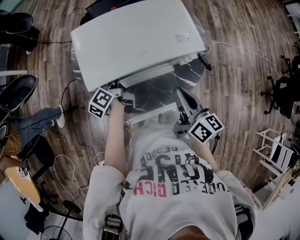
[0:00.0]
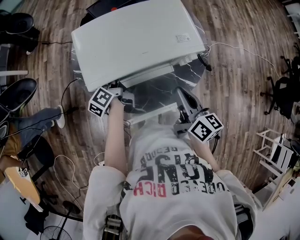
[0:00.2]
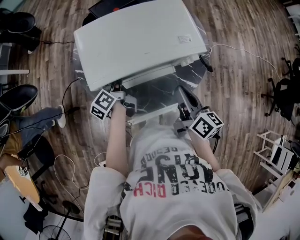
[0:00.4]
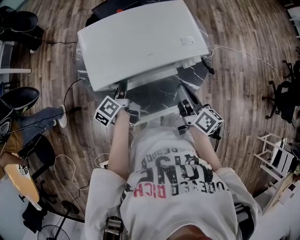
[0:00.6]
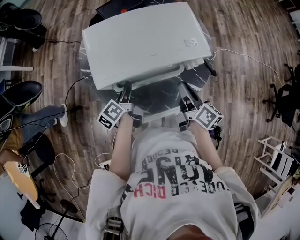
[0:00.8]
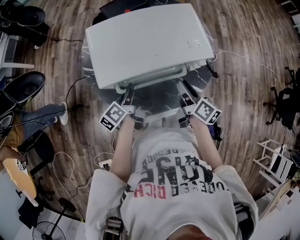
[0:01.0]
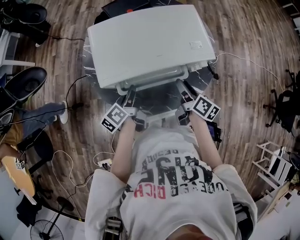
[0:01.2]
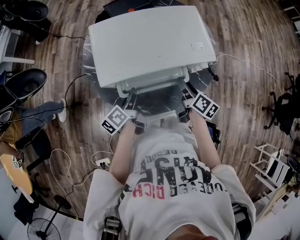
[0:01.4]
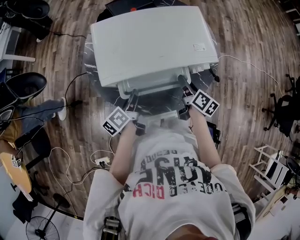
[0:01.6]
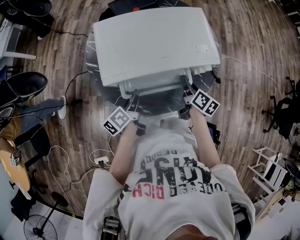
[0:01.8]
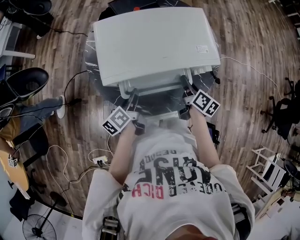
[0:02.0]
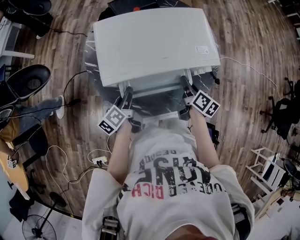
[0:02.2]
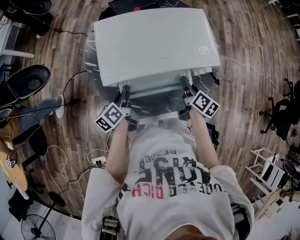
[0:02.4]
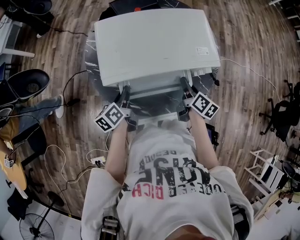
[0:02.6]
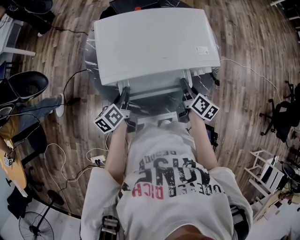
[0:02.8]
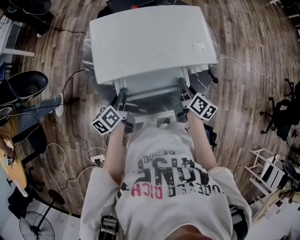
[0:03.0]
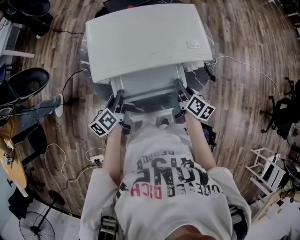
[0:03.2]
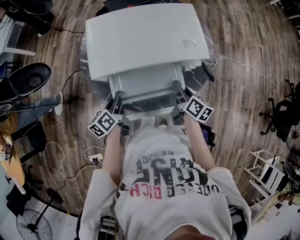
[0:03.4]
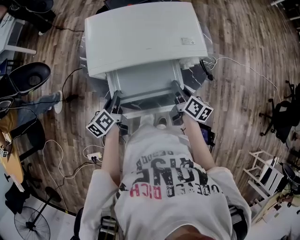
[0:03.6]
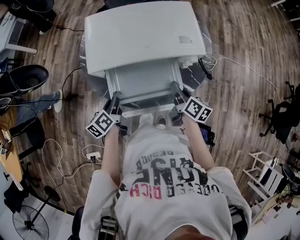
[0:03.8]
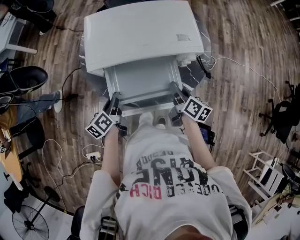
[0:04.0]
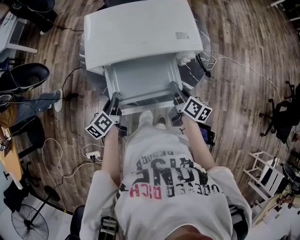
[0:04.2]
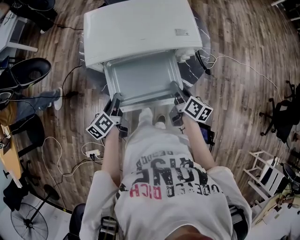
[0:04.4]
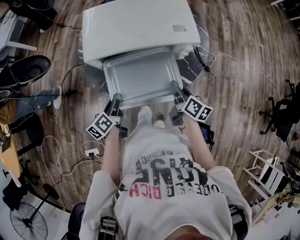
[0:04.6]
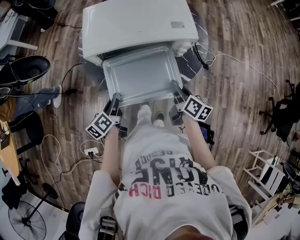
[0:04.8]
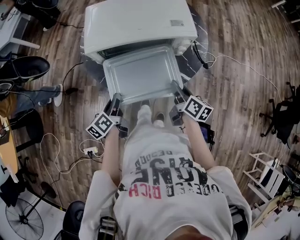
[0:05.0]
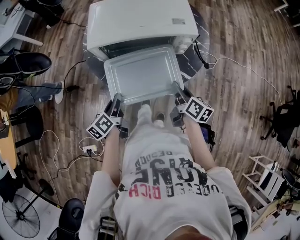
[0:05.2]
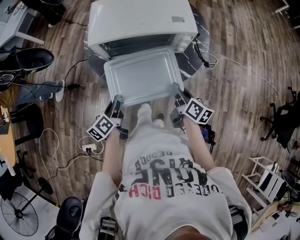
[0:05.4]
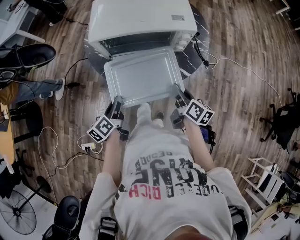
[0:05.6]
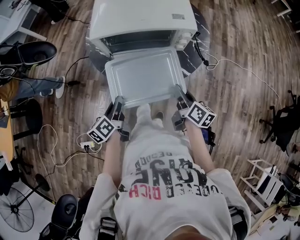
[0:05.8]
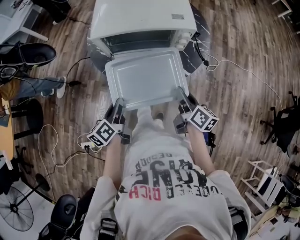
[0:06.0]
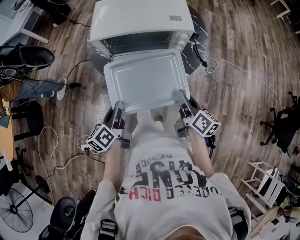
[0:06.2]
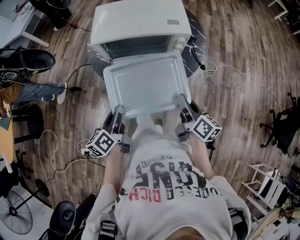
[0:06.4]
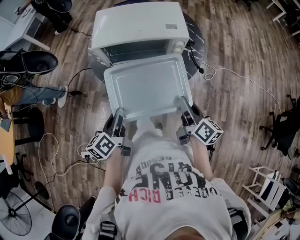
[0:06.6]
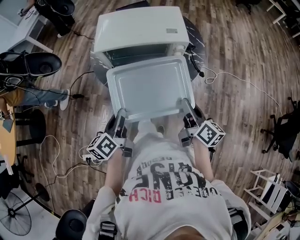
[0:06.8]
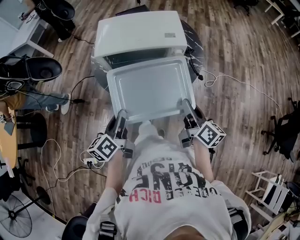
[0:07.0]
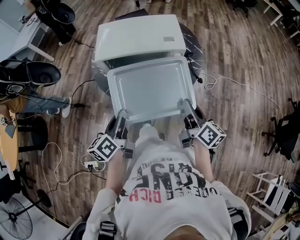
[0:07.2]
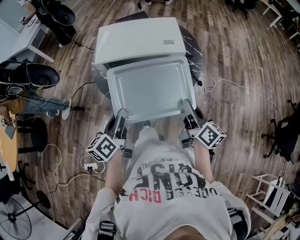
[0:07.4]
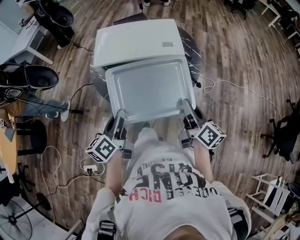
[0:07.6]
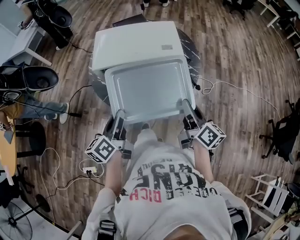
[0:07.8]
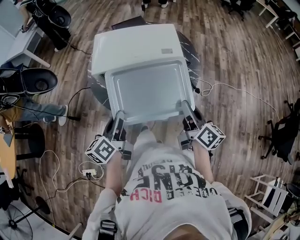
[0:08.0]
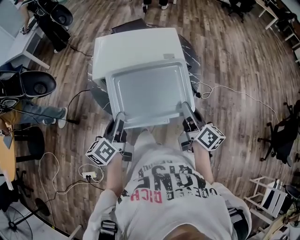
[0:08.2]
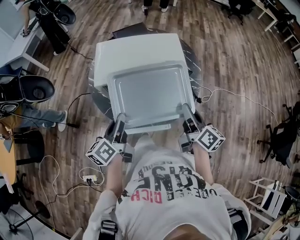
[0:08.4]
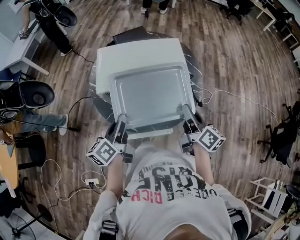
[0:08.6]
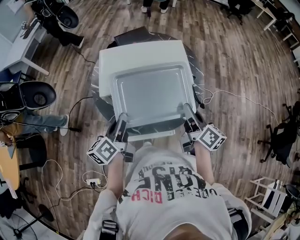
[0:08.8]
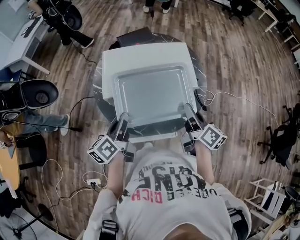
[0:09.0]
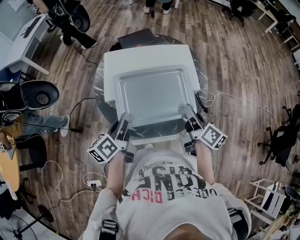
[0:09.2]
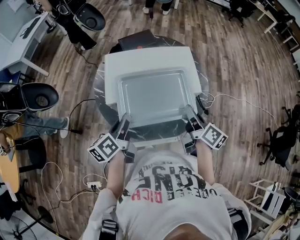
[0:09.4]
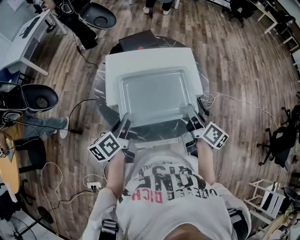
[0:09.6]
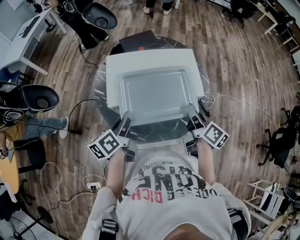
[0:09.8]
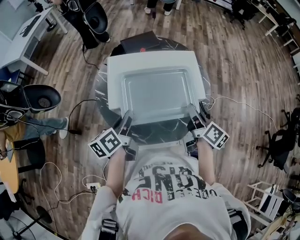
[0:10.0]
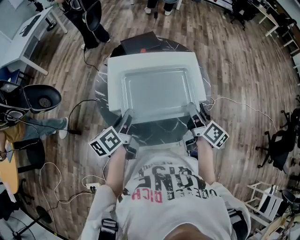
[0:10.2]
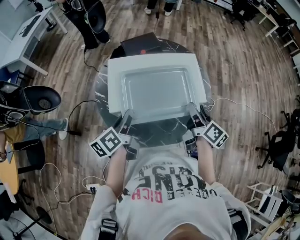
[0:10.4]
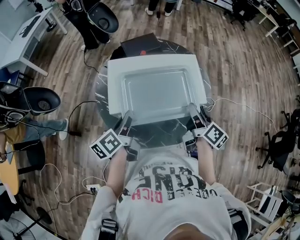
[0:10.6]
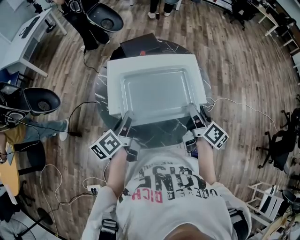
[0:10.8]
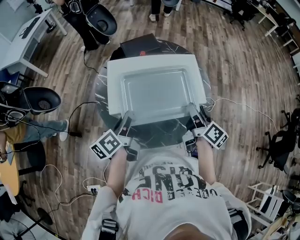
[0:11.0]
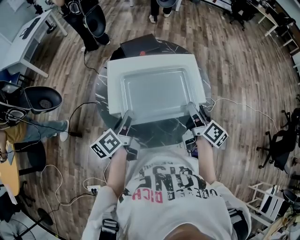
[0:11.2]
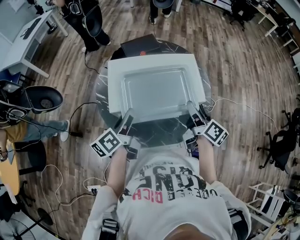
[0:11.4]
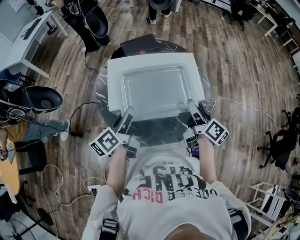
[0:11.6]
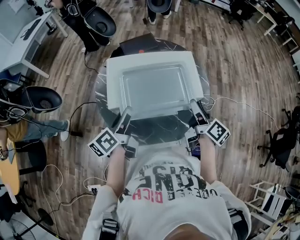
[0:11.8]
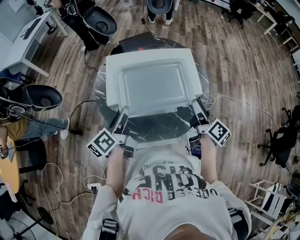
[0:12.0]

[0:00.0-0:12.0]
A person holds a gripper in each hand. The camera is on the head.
0:00.0 to 0:01.6: The left gripper shifts roughly 10 cm backward. Meanwhile the right gripper heads downward and forward, covering approximately 15 cm, changes its angle by some 20 degrees, and opens.
0:01.6 to 0:03.0: The right gripper closes up.
0:03.0 to 0:04.4: Both grippers travel together backward, approximately 10 cm.
0:04.4 to 0:06.0: Both grippers travel together backward, about 10 cm.
0:06.0 to 0:07.6: The grippers both shift upward by roughly 10 cm.
0:07.6 to 0:09.0: The two grippers go roughly 15 cm forward.
0:09.0 to 0:10.4: The two grippers go roughly 5 cm forward.
0:10.4 to 0:12.0: The right gripper opens up, while the left gripper opens its fingers.

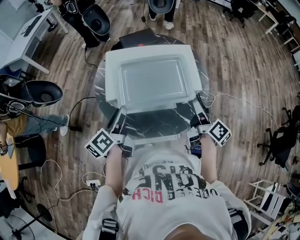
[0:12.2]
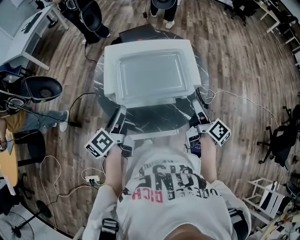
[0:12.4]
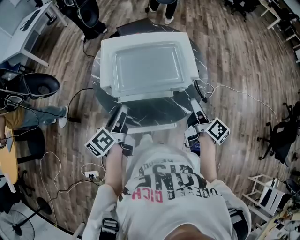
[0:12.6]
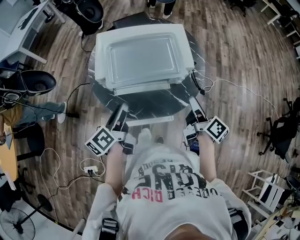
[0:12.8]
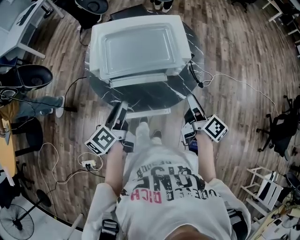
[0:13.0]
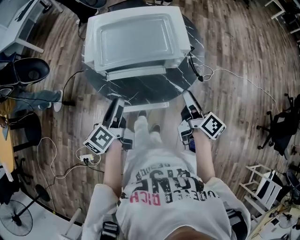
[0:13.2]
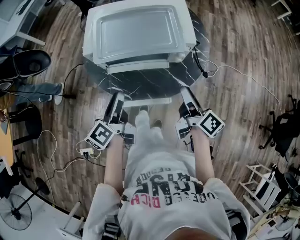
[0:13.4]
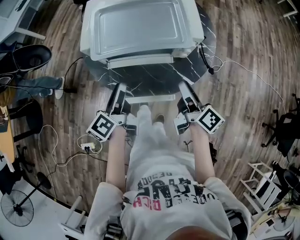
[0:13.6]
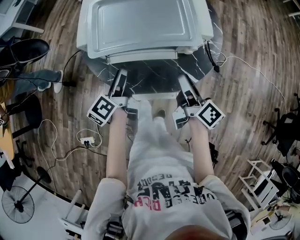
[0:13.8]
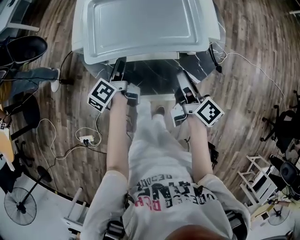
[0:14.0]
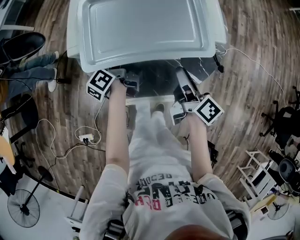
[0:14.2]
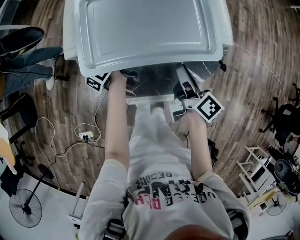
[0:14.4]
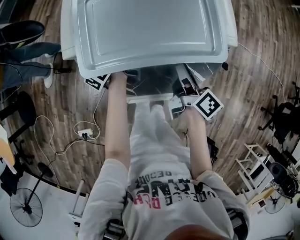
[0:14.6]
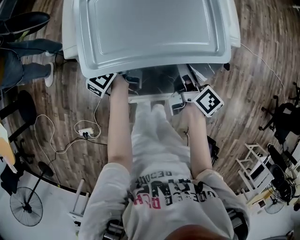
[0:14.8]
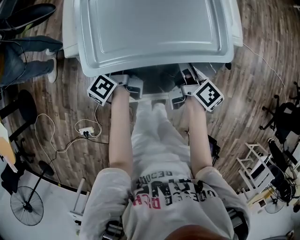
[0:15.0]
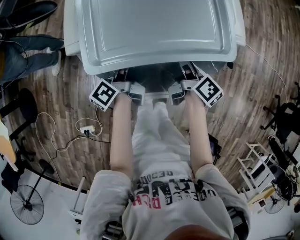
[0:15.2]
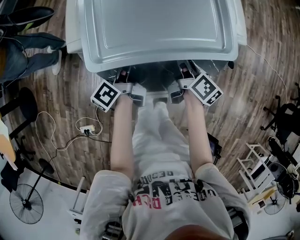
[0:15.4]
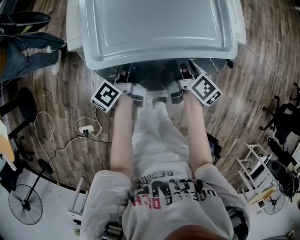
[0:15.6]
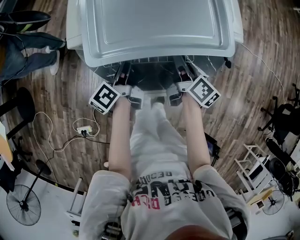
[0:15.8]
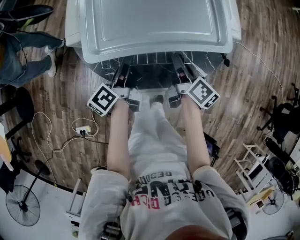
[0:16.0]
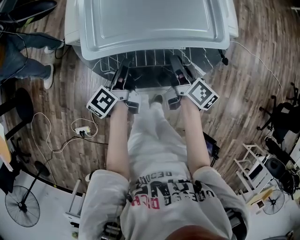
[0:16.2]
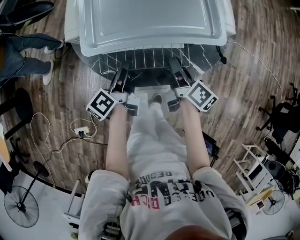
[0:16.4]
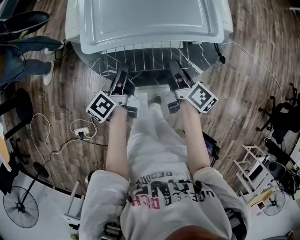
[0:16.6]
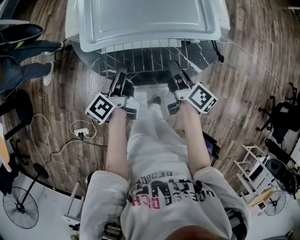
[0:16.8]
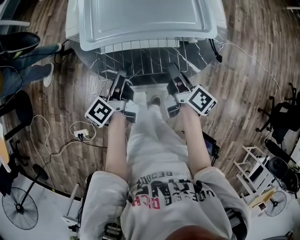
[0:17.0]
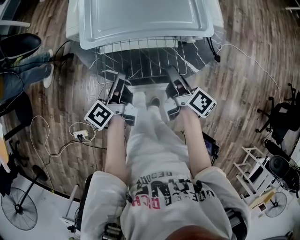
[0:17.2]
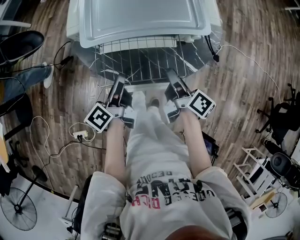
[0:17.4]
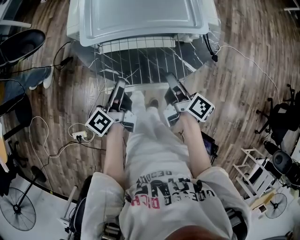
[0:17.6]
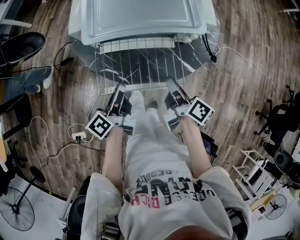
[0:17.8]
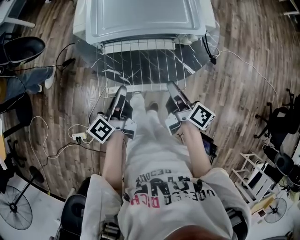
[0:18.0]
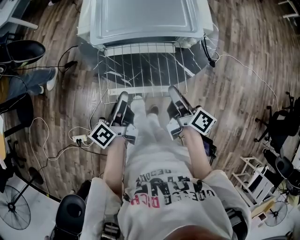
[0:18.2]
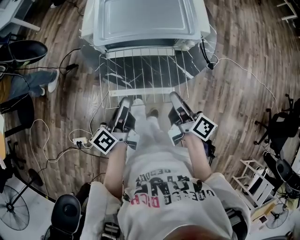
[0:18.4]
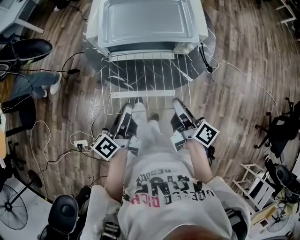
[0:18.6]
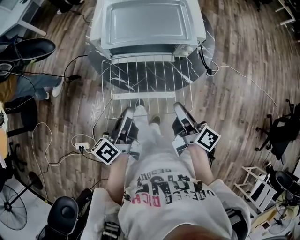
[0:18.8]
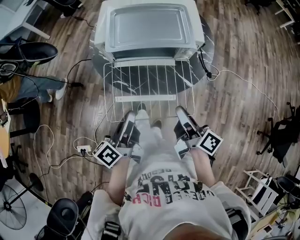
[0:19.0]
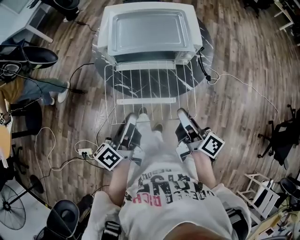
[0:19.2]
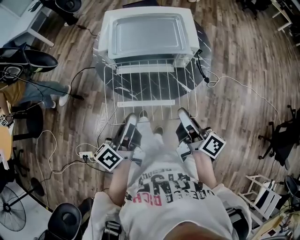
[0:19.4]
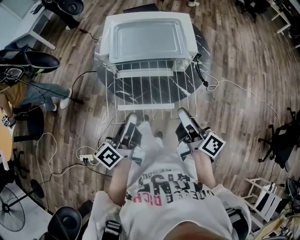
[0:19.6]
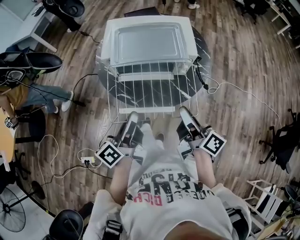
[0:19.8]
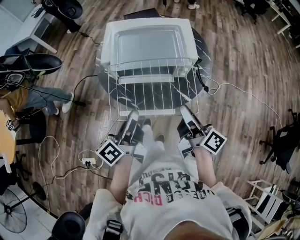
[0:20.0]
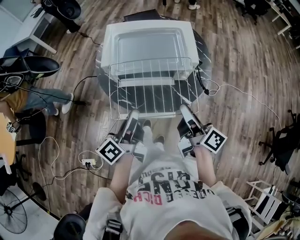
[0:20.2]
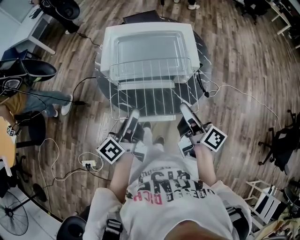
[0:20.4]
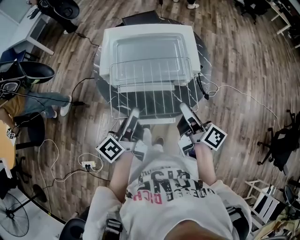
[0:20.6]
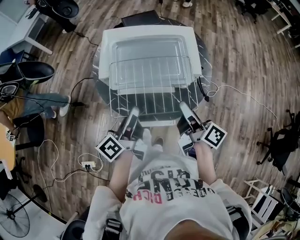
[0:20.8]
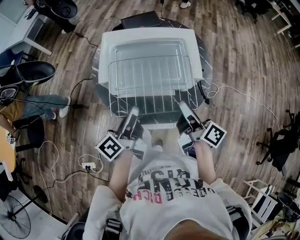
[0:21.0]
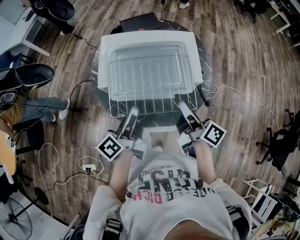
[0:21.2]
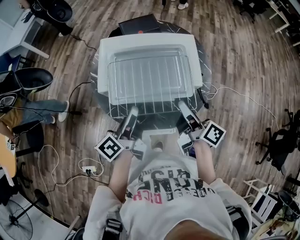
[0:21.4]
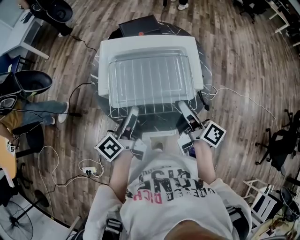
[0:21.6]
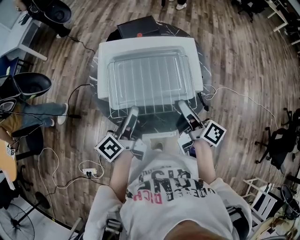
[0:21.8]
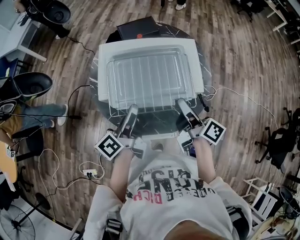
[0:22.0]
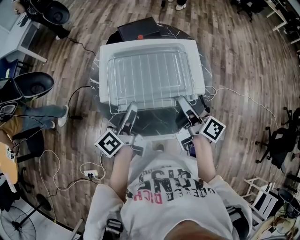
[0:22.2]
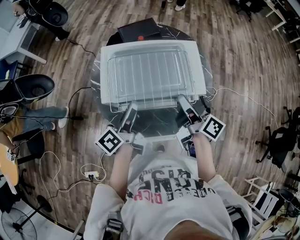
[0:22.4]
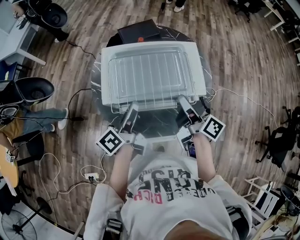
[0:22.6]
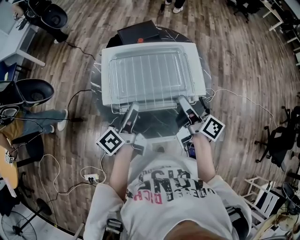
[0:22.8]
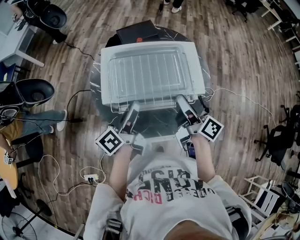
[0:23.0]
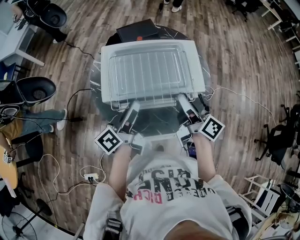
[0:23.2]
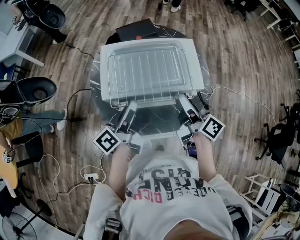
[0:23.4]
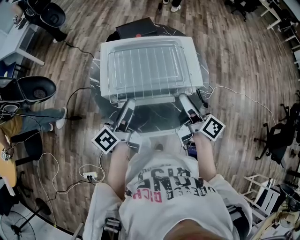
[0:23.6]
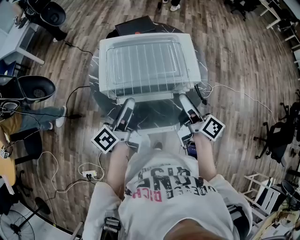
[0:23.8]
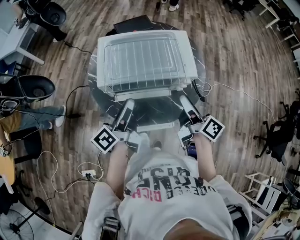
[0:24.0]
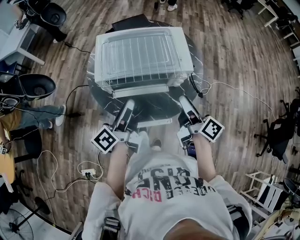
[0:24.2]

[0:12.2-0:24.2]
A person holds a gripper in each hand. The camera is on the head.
0:12.2 to 0:13.8: The right gripper heads downward and backward, covering roughly 10 cm, while the left gripper travels downward and to the right by some 15 cm.
0:13.8 to 0:15.2: The two grippers go roughly 10 cm downward and forward. The left gripper closes its fingers.
0:15.2 to 0:16.6: The two grippers go approximately 5 cm backward. The right gripper closes.
0:16.6 to 0:18.2: The two grippers go roughly 10 cm backward and upward.
0:18.2 to 0:19.8: Both grippers travel together upward, approximately 15 cm.
0:19.8 to 0:21.2: The two grippers go some 15 cm forward.
0:21.2 to 0:22.6: The two grippers go roughly 5 cm forward.
0:22.6 to 0:24.2: Both grippers travel together backward, roughly 10 cm. The left gripper opens its fingers, while the right gripper opens.
